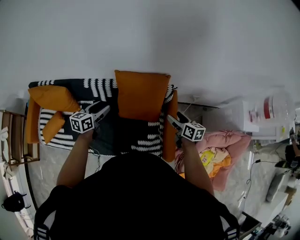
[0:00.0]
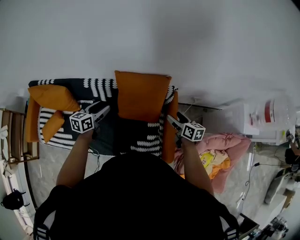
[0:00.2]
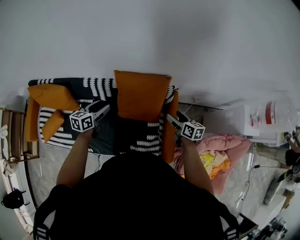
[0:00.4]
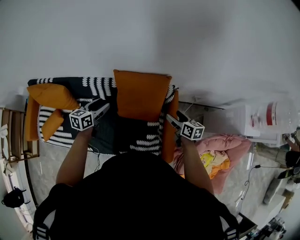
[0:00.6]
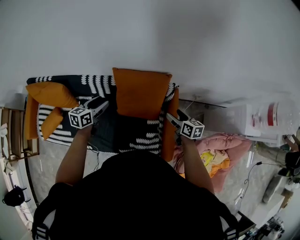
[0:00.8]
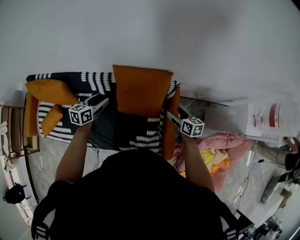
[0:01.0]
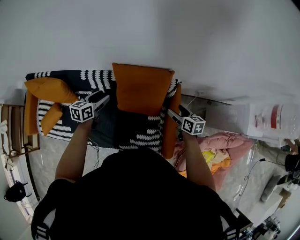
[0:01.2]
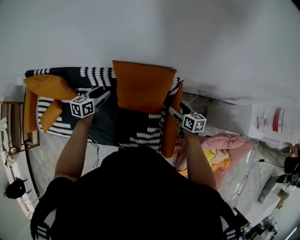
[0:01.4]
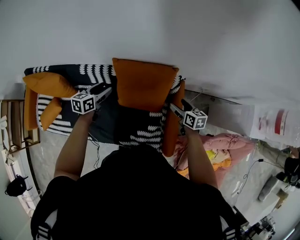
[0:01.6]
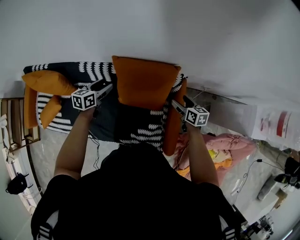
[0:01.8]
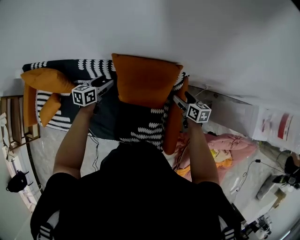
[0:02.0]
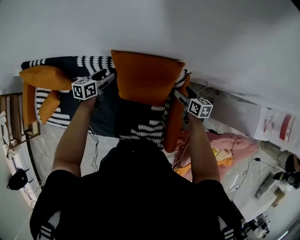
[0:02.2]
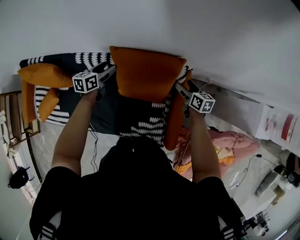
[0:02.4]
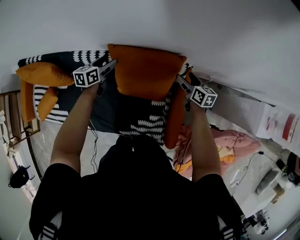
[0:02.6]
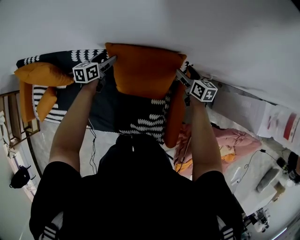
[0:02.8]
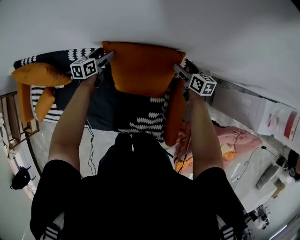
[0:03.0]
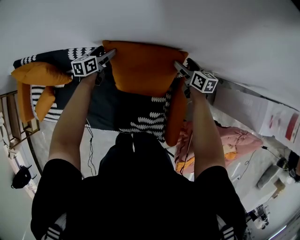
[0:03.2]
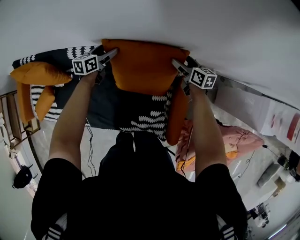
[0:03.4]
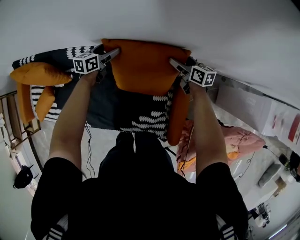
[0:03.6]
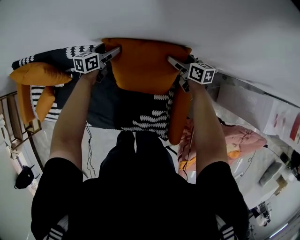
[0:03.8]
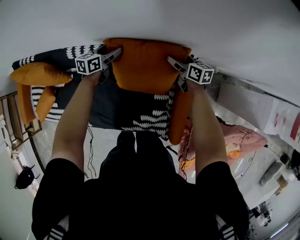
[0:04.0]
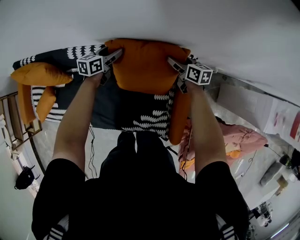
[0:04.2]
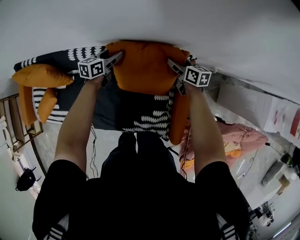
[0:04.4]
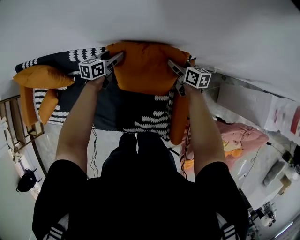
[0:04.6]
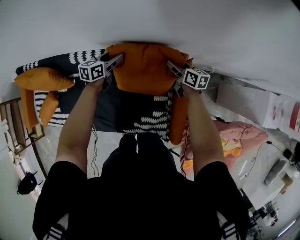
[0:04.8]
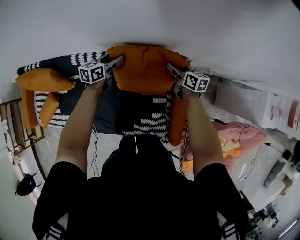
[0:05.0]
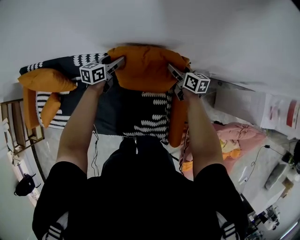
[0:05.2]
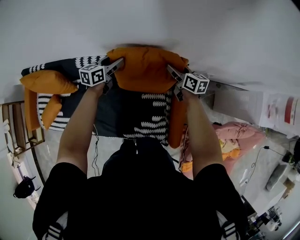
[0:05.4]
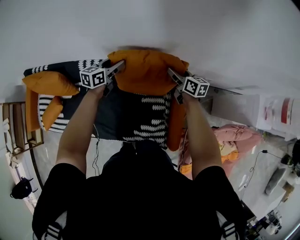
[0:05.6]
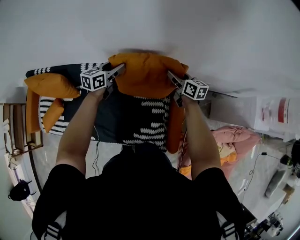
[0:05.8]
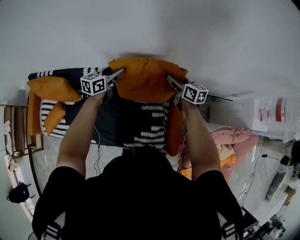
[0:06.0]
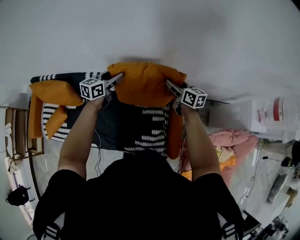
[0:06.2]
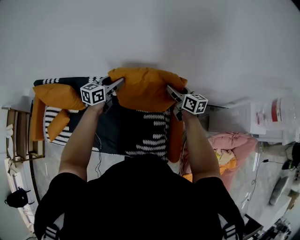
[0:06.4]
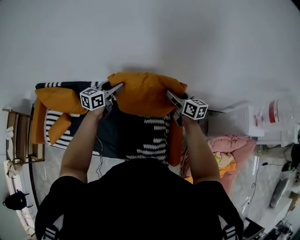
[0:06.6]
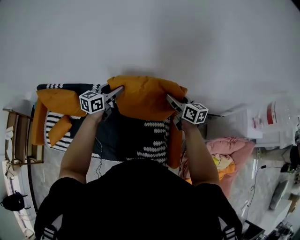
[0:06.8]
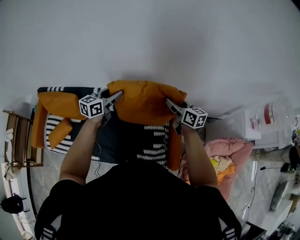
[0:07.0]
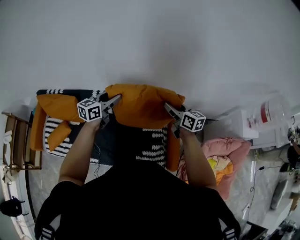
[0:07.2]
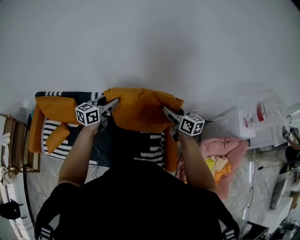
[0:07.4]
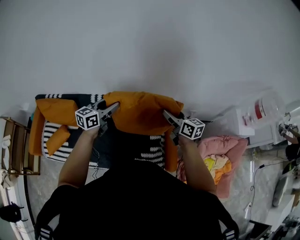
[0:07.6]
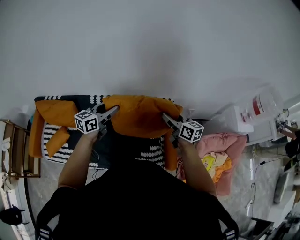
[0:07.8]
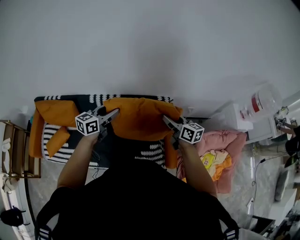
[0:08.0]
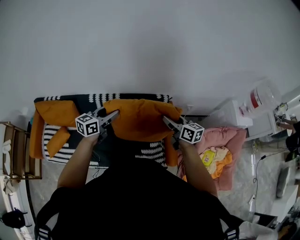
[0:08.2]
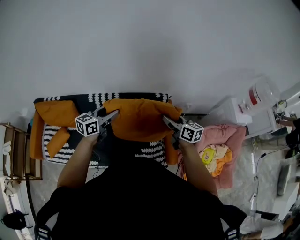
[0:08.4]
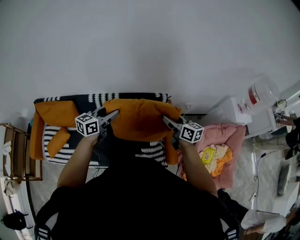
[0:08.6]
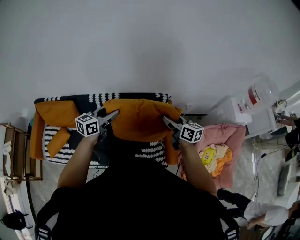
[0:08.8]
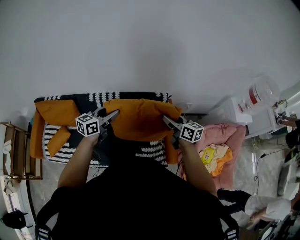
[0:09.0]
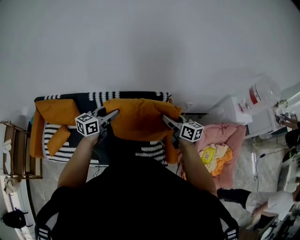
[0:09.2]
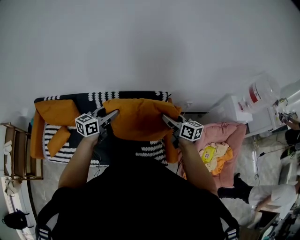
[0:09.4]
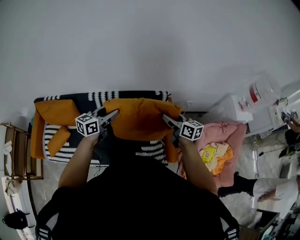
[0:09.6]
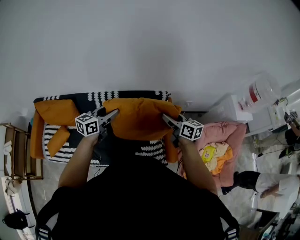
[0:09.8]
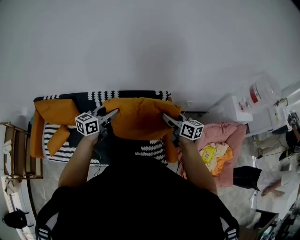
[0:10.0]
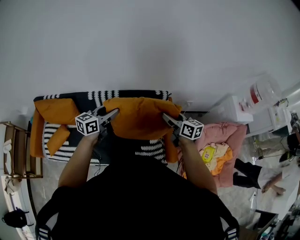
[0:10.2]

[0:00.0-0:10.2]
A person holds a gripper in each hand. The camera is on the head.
0.0 to 1.4 s: The right gripper is displaced downward and forward by some 10 cm. Meanwhile the left gripper is displaced forward and downward by some 10 cm.
1.4 to 3.0 s: The right gripper is displaced forward by approximately 15 cm, while the left gripper shifts roughly 20 cm forward and downward.
3.0 to 4.4 s: The right gripper ends up approximately 5 cm from where it was. Meanwhile the left gripper ends up about 5 cm from where it was, and closes.
4.4 to 5.8 s: Both grippers move upward, roughly 15 cm.
5.8 to 7.2 s: Both grippers travel together upward and backward, about 20 cm.
7.2 to 8.8 s: Both grippers move backward, roughly 15 cm.
8.8 to 10.2 s: The grippers stay close to where they were, moving slightly.

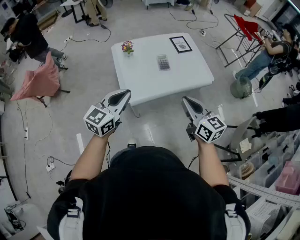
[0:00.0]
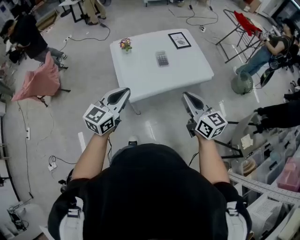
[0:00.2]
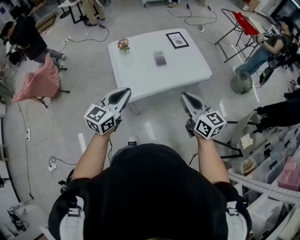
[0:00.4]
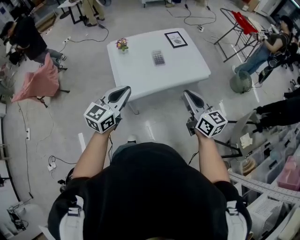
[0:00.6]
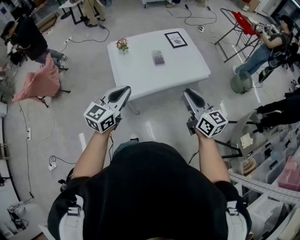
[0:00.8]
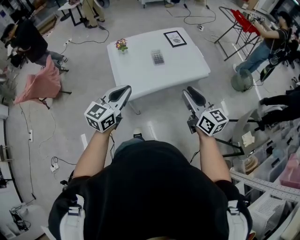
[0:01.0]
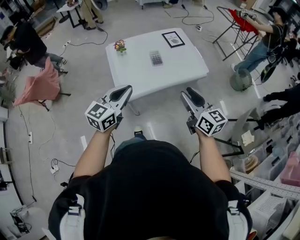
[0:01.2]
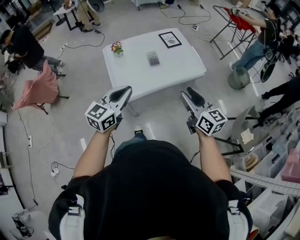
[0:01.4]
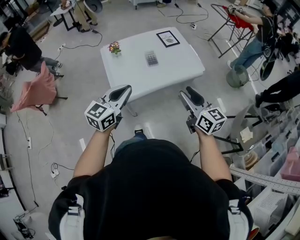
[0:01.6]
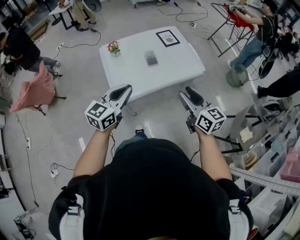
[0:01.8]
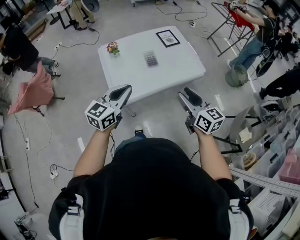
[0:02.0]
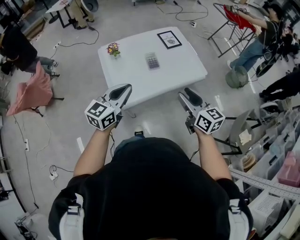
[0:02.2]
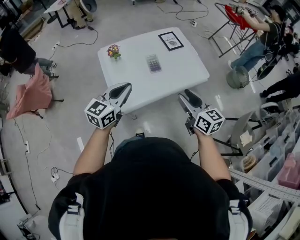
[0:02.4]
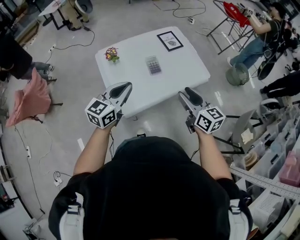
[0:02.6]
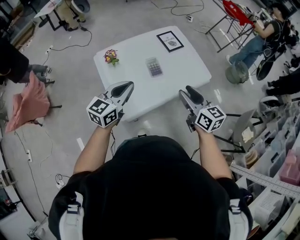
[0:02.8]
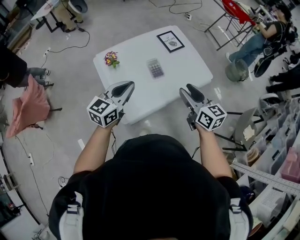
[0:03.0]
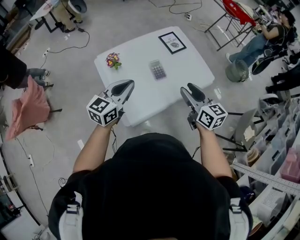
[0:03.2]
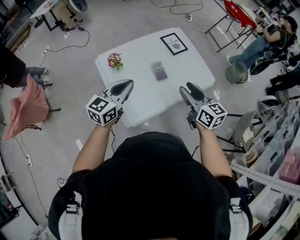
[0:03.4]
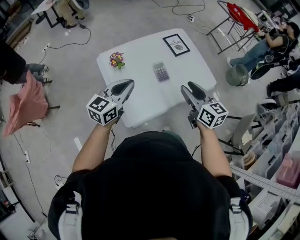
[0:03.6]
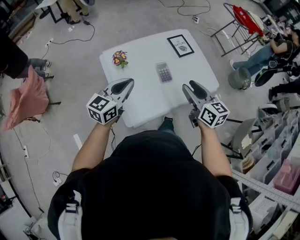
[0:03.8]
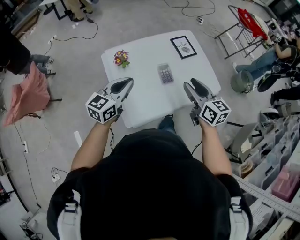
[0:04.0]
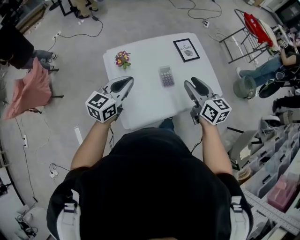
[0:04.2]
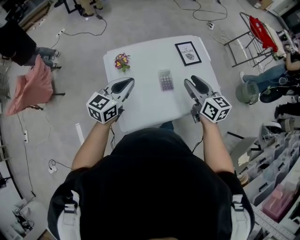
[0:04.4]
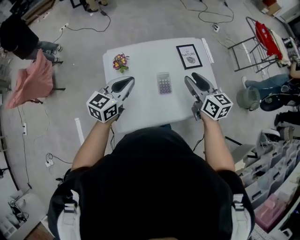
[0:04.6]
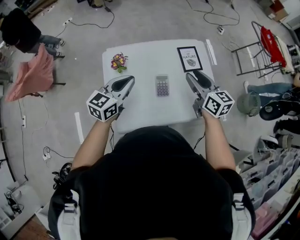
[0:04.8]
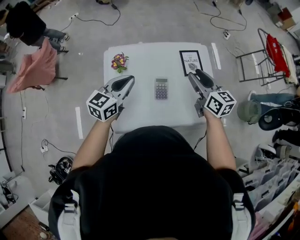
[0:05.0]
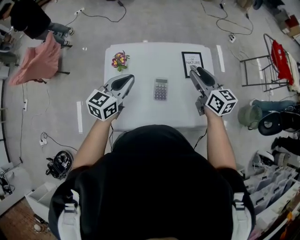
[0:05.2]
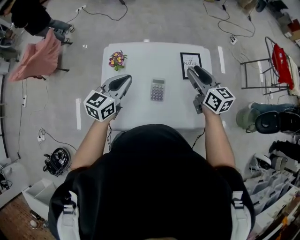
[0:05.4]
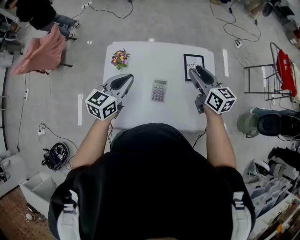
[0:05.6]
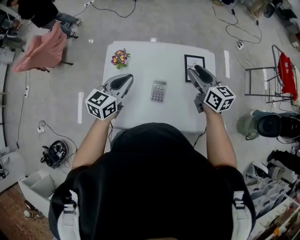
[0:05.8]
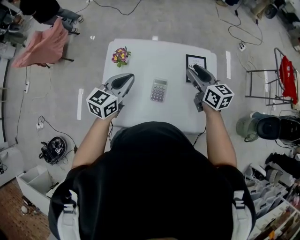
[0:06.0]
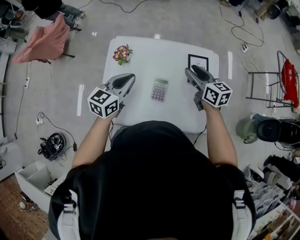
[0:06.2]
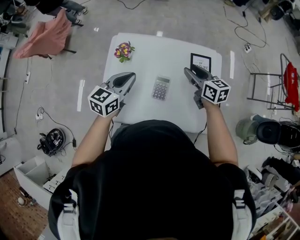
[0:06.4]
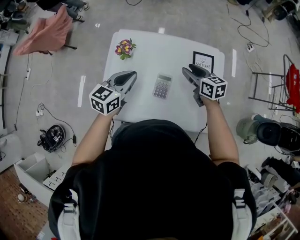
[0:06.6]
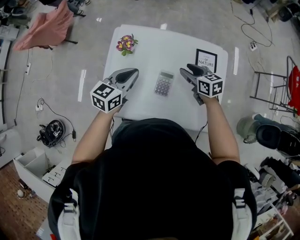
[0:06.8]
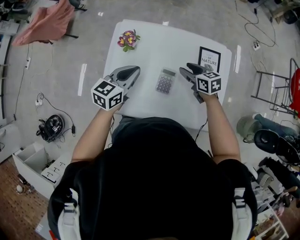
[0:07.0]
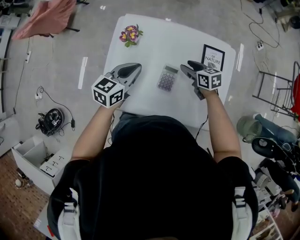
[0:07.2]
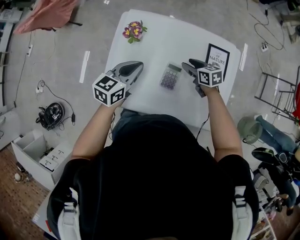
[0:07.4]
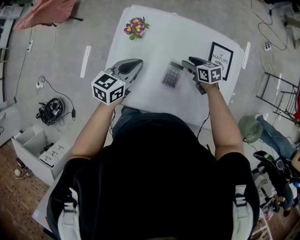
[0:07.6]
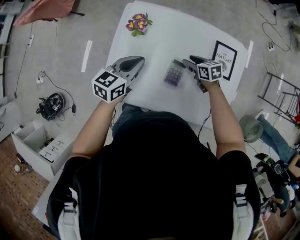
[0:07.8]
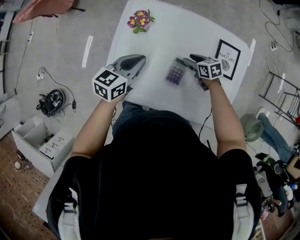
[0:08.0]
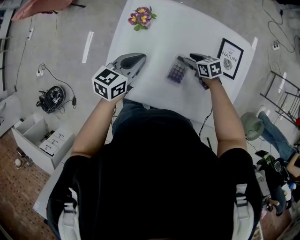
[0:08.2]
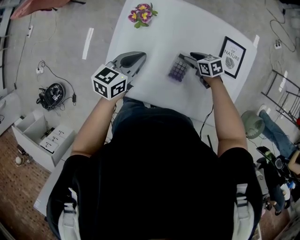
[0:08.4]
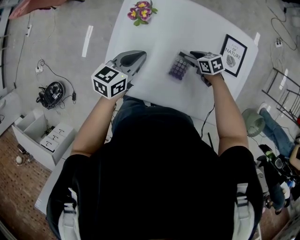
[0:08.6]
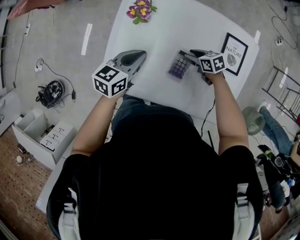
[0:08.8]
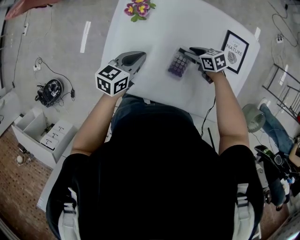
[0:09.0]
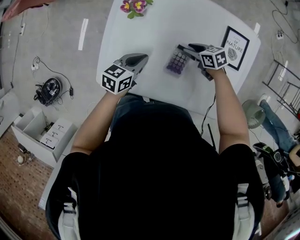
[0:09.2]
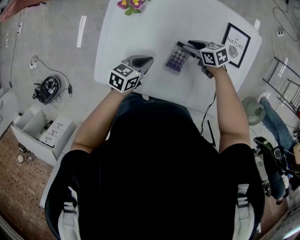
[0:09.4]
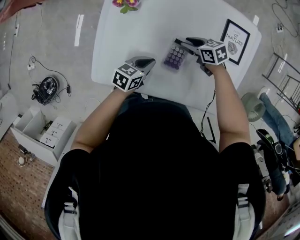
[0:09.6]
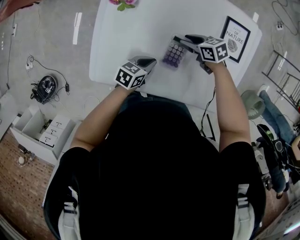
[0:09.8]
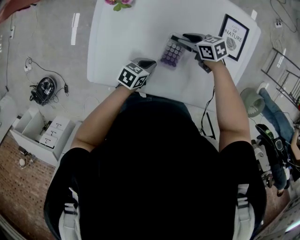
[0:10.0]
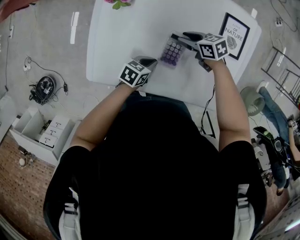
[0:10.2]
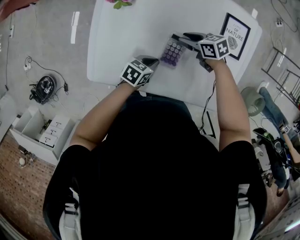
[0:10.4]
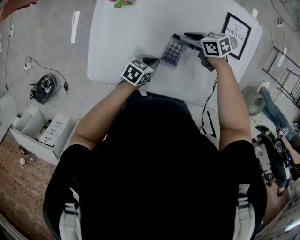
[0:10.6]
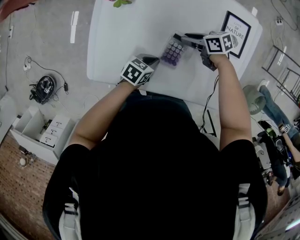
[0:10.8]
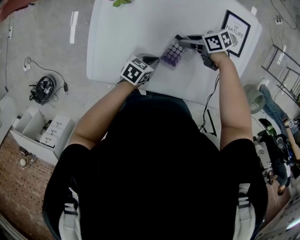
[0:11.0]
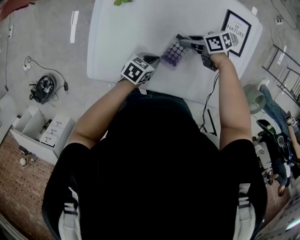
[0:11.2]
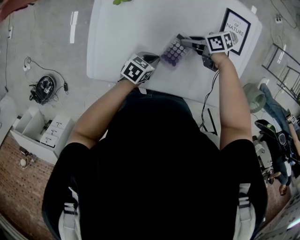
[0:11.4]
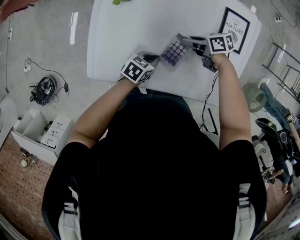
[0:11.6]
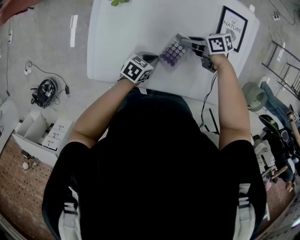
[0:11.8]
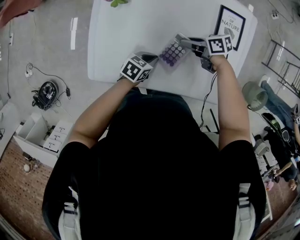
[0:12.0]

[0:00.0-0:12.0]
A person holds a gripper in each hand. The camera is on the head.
0.0 to 1.6 s: Both grippers travel together to the right, approximately 10 cm. The right gripper opens its fingers.
1.6 to 3.0 s: The left gripper travels forward by about 20 cm; the right gripper travels forward and to the left by approximately 20 cm.
3.0 to 4.4 s: The right gripper is displaced forward by about 15 cm, while the left gripper shifts approximately 10 cm forward.
4.4 to 6.0 s: The left gripper shifts some 10 cm forward and to the right, and turns by about 20 degrees. The right gripper shifts roughly 20 cm forward, and turns by roughly 20 degrees.
6.0 to 7.6 s: The right gripper goes some 25 cm downward, and swivels some 40 degrees. Meanwhile the left gripper heads downward, covering some 10 cm.
7.6 to 9.0 s: Both grippers move downward, roughly 10 cm.
9.0 to 10.4 s: The left gripper heads downward, covering some 15 cm, and rotates about 30 degrees.
10.4 to 12.0 s: The right gripper changes place by about 5 cm, and rotates roughly 20 degrees.

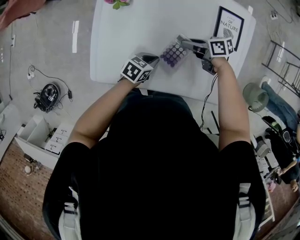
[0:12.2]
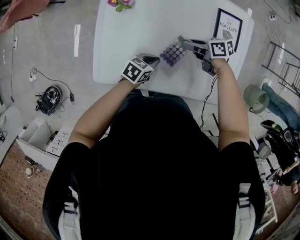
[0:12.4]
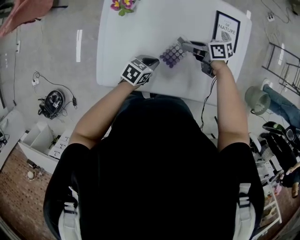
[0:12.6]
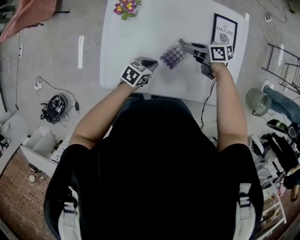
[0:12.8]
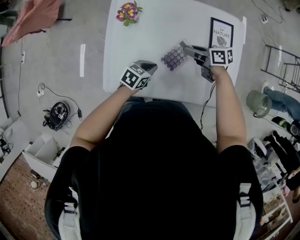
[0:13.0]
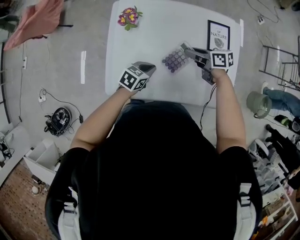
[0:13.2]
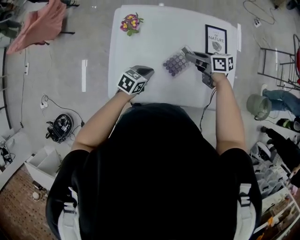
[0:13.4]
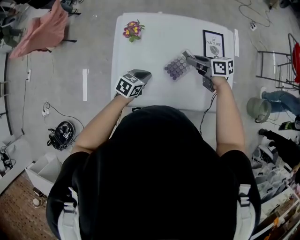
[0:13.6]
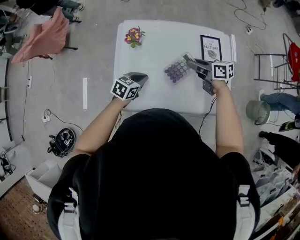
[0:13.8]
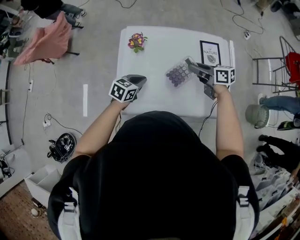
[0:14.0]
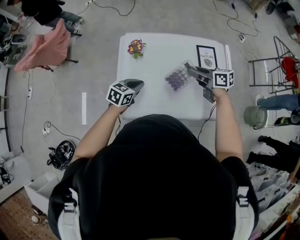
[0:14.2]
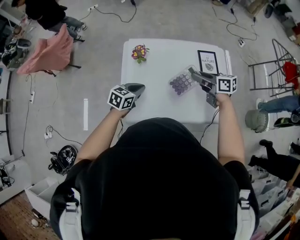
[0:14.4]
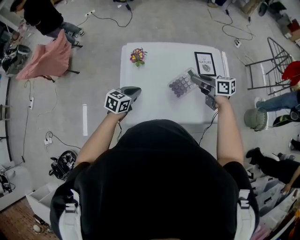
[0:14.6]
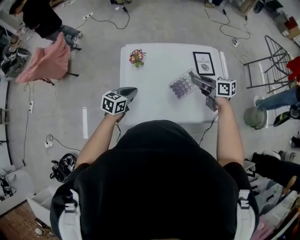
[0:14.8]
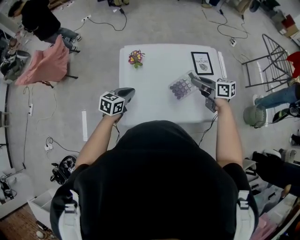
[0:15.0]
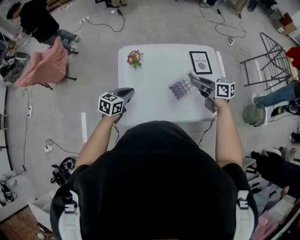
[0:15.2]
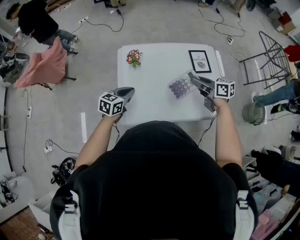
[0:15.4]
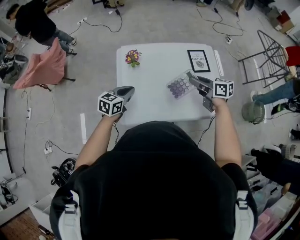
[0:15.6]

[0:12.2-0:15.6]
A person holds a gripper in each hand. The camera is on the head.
12.2 to 13.8 s: Both grippers travel together upward, some 20 cm. The right gripper turns by roughly 30 degrees.
13.8 to 15.6 s: The left gripper moves upward and to the left, roughly 15 cm. The right gripper moves upward and backward, about 10 cm.
